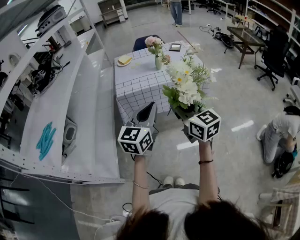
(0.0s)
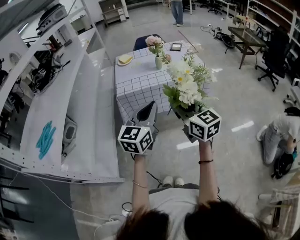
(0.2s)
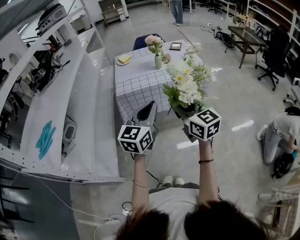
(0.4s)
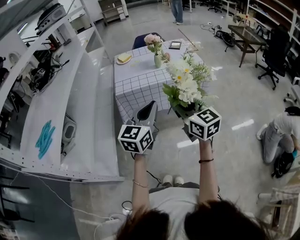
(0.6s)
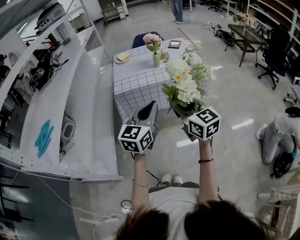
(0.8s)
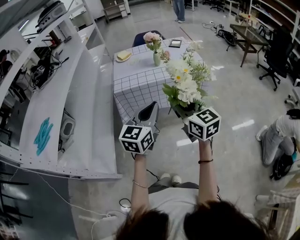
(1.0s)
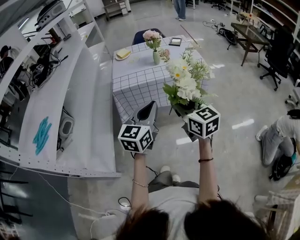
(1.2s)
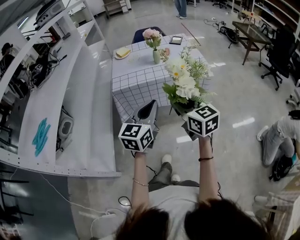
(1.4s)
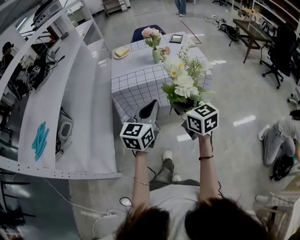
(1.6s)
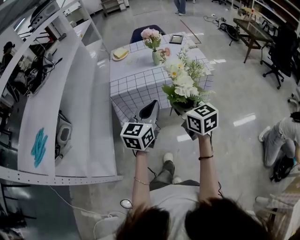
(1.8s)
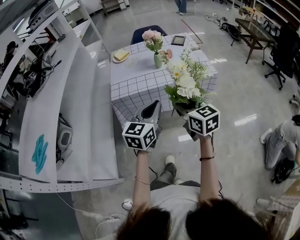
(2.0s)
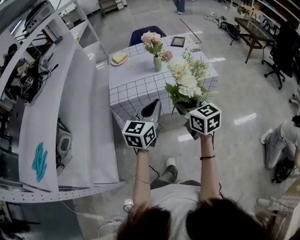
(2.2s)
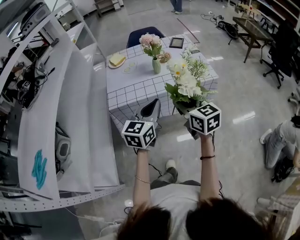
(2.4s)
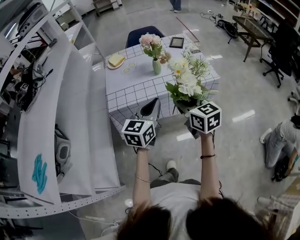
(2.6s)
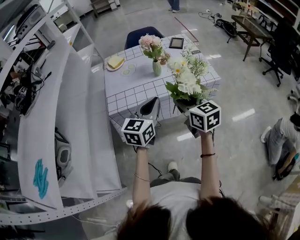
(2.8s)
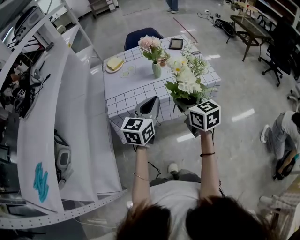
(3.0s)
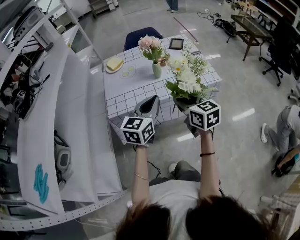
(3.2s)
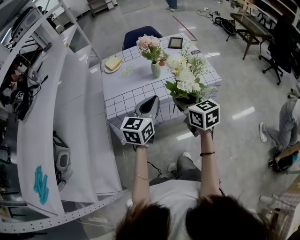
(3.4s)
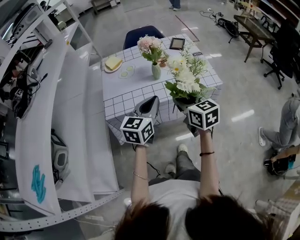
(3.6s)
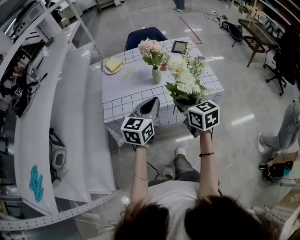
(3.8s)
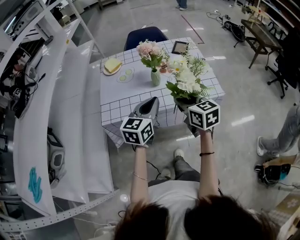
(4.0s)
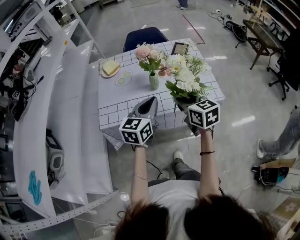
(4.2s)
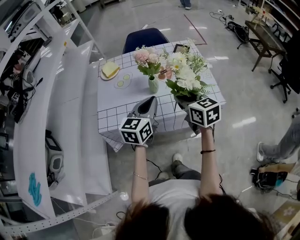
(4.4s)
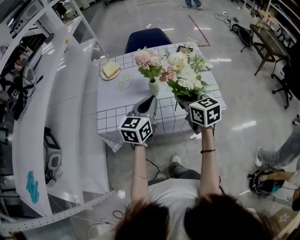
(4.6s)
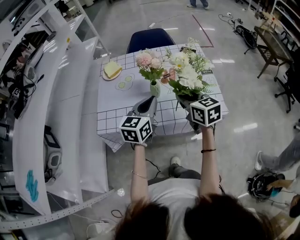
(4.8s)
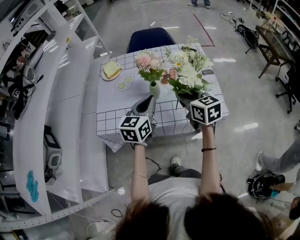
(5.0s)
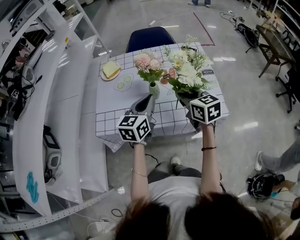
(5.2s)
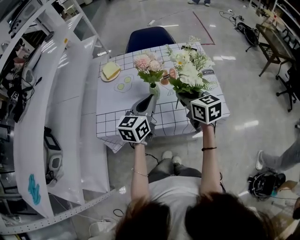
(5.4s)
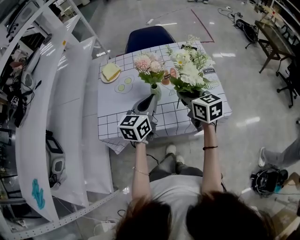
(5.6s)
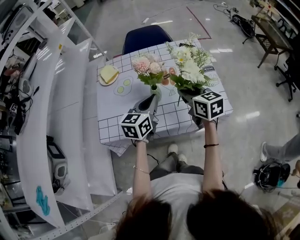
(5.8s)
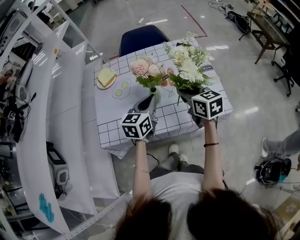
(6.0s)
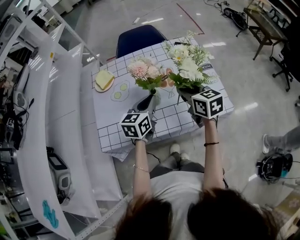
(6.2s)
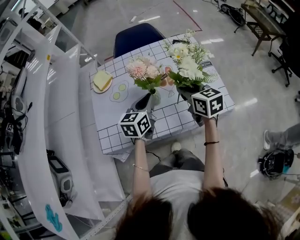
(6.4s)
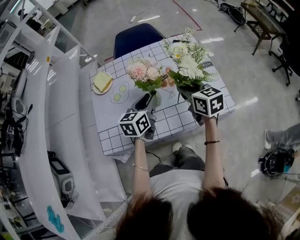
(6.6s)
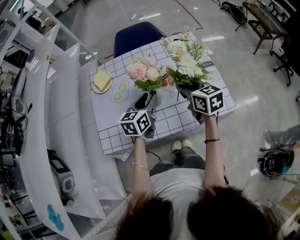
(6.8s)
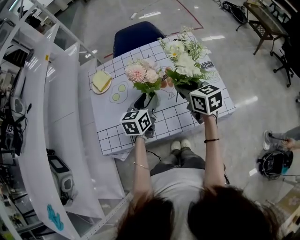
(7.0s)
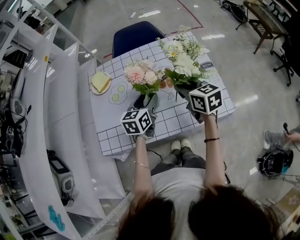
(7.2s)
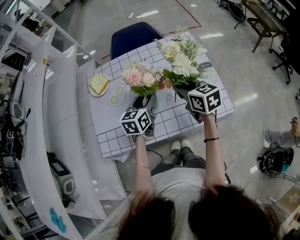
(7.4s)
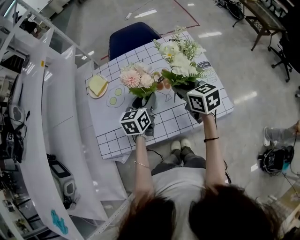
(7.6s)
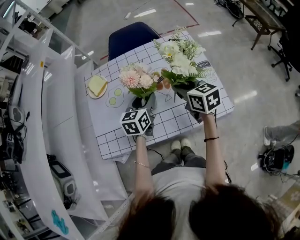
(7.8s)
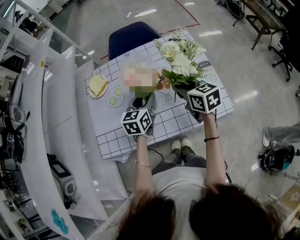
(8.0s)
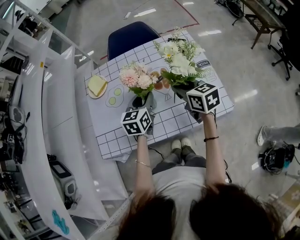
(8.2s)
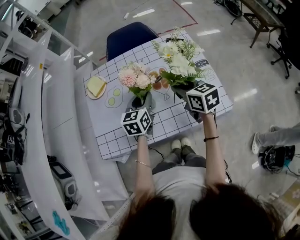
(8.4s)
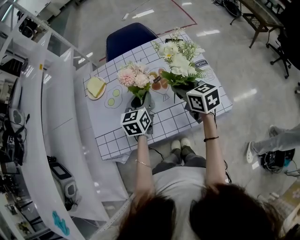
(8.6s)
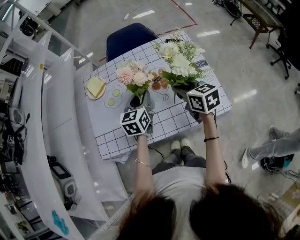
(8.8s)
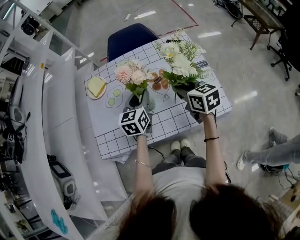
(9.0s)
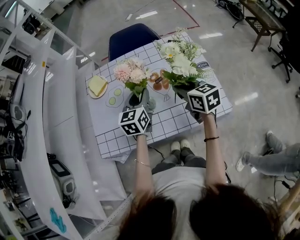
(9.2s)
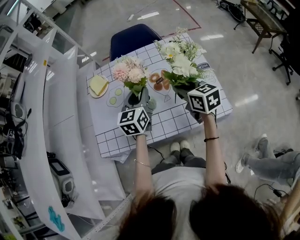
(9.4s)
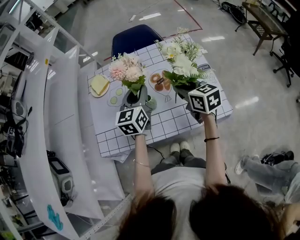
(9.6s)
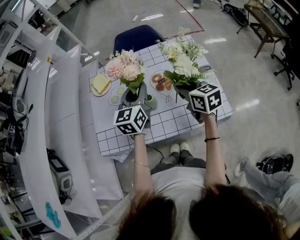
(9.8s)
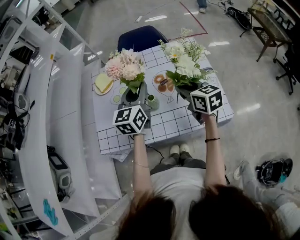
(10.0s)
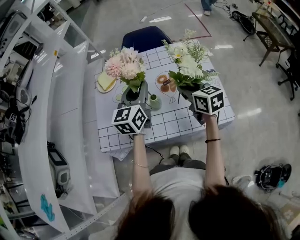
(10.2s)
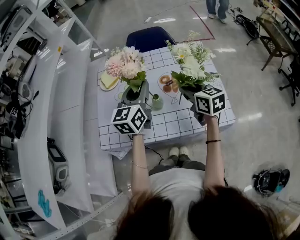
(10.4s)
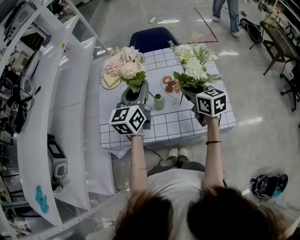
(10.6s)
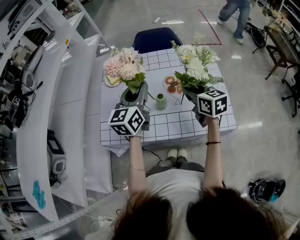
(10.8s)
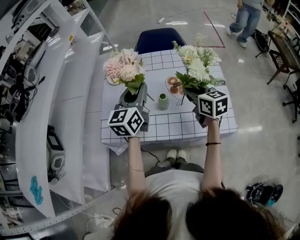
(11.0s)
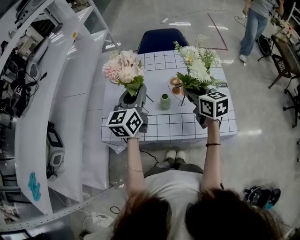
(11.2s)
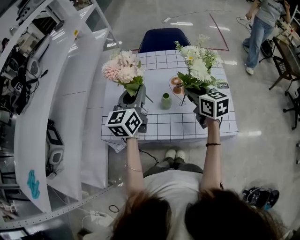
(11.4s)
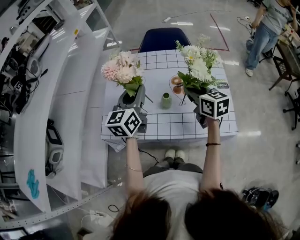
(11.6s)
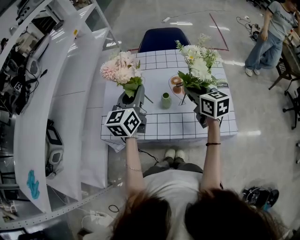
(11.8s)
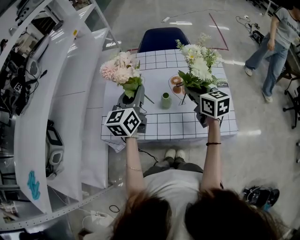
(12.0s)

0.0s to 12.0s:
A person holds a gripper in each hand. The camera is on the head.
0.0s to 1.6s: Both grippers travel together forward, some 5 cm.
1.6s to 3.0s: Both grippers travel together forward, about 20 cm.
3.0s to 4.4s: Both grippers move forward, approximately 15 cm.
4.4s to 6.0s: Both grippers move forward, some 10 cm.
6.0s to 7.6s: Both grippers move forward, some 5 cm. The left gripper opens up.
7.6s to 9.0s: The left gripper closes.
9.0s to 10.4s: The left gripper moves upward, approximately 10 cm.
10.4s to 12.0s: The left gripper travels to the left by about 10 cm.

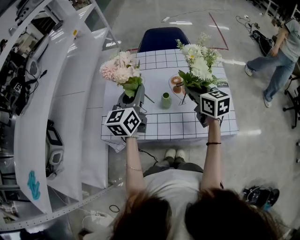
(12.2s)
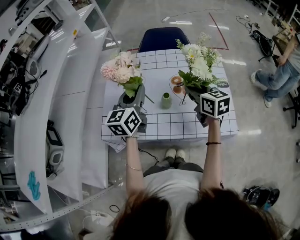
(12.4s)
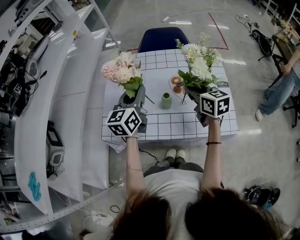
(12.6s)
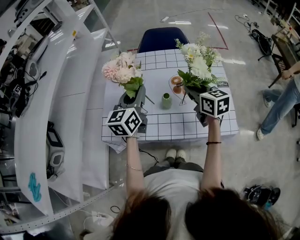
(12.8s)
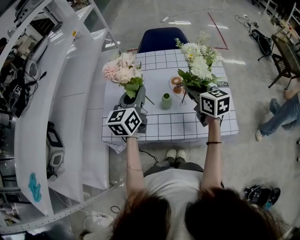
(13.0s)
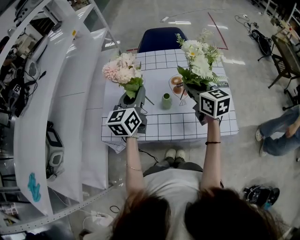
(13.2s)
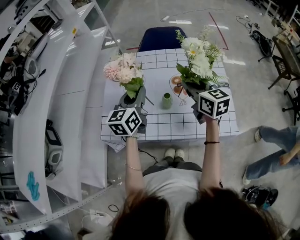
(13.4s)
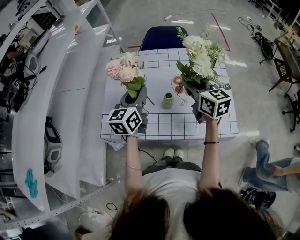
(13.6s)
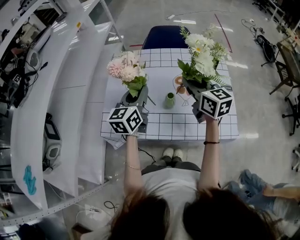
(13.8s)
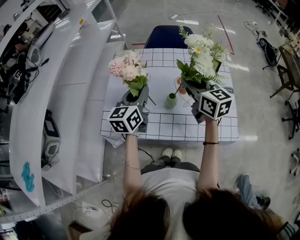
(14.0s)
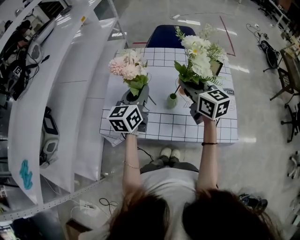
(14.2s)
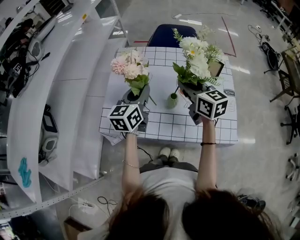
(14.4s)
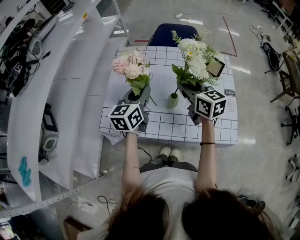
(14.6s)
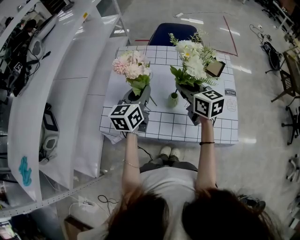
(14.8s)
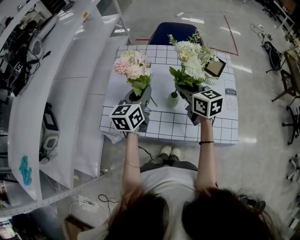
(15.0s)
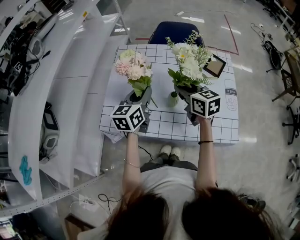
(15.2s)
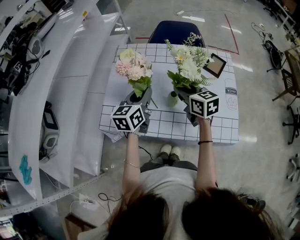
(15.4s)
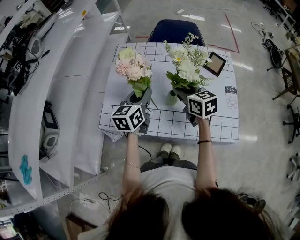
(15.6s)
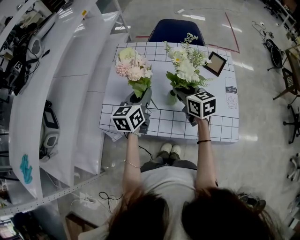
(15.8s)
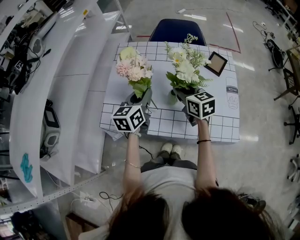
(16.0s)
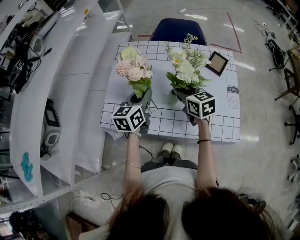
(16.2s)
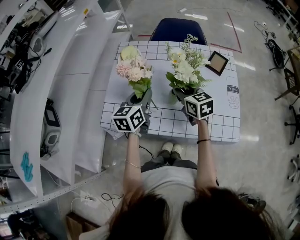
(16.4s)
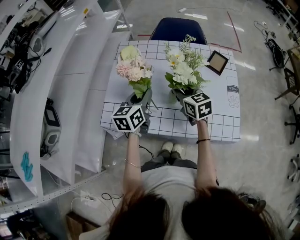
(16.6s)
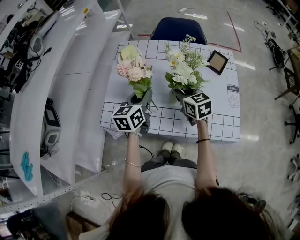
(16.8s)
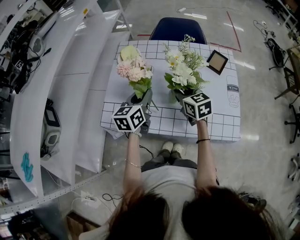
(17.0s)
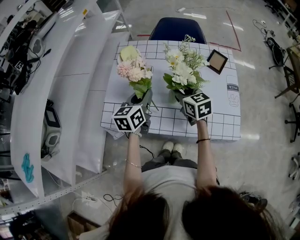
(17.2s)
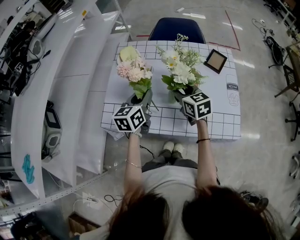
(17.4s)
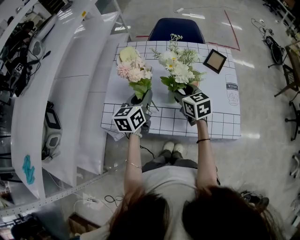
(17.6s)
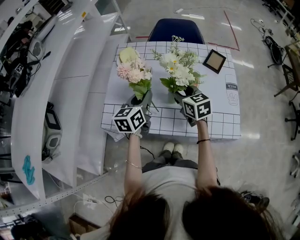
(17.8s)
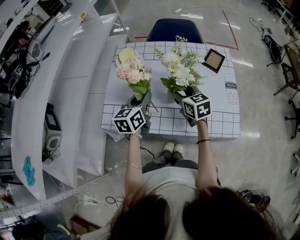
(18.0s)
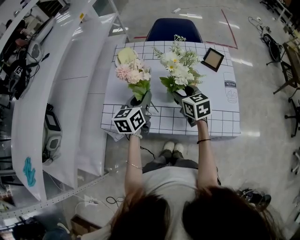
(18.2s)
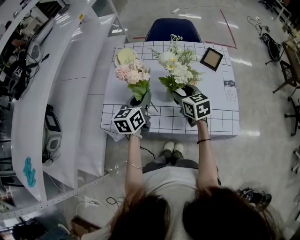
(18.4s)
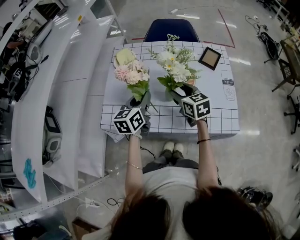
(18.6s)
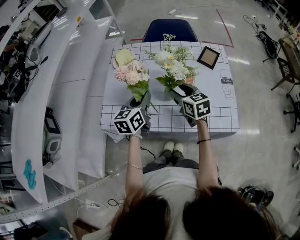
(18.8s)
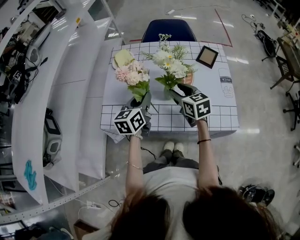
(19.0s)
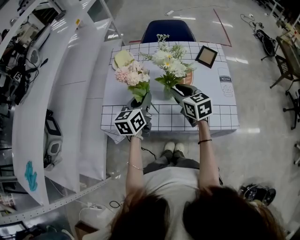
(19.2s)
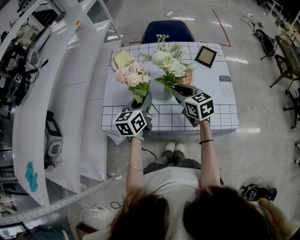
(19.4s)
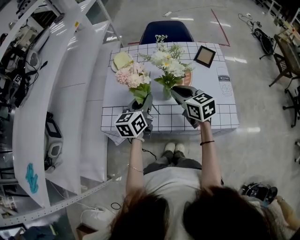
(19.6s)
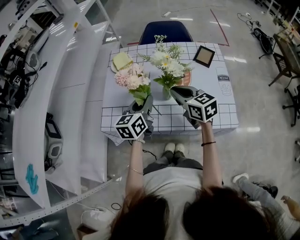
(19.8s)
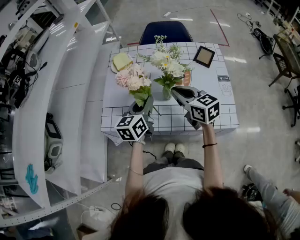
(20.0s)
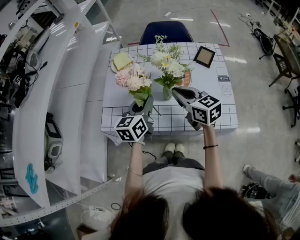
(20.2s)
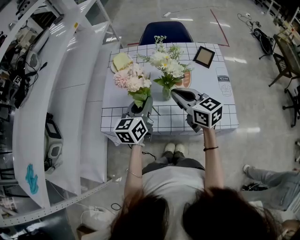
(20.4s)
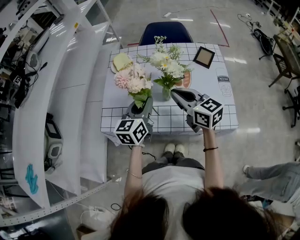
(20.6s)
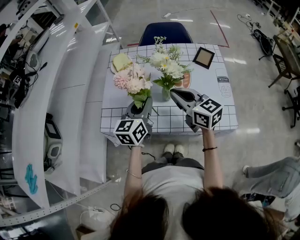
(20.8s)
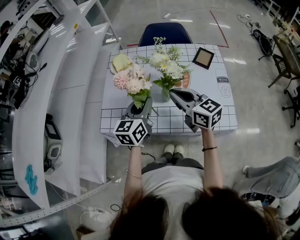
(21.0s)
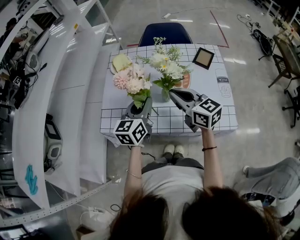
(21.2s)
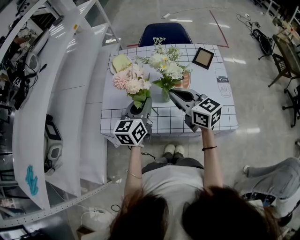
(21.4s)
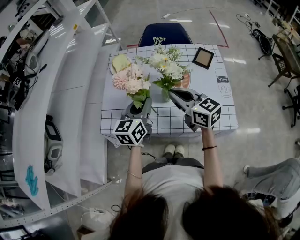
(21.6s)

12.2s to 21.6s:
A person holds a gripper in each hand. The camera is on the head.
12.2s to 13.8s: The right gripper shifts by about 5 cm.
13.8s to 15.4s: The right gripper shifts about 10 cm downward.
15.4s to 17.0s: The grippers move only a little.
17.0s to 18.4s: The right gripper opens up.
18.4s to 20.0s: The right gripper moves upward and backward, roughly 10 cm, and closes its fingers.
20.0s to 21.6s: The grippers stay close to where they were, moving slightly.

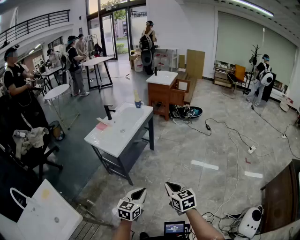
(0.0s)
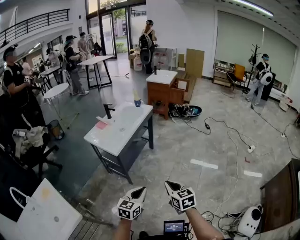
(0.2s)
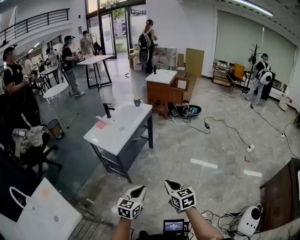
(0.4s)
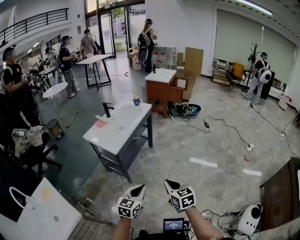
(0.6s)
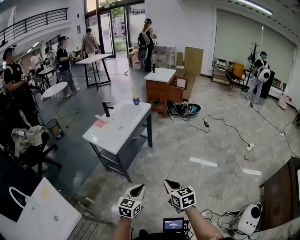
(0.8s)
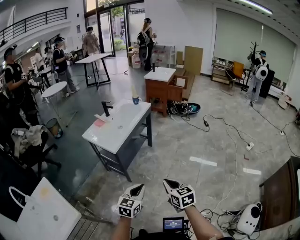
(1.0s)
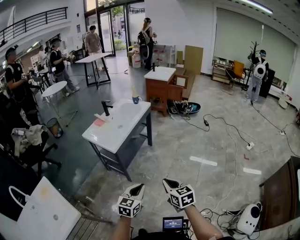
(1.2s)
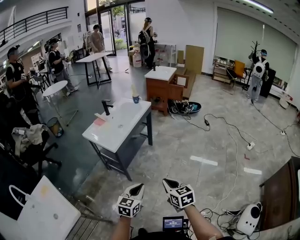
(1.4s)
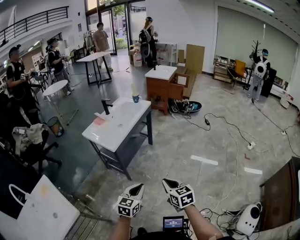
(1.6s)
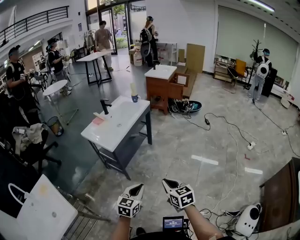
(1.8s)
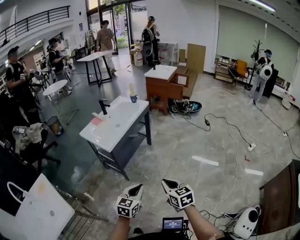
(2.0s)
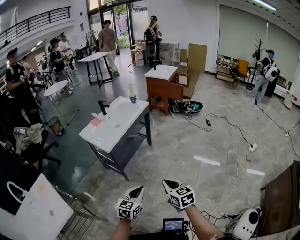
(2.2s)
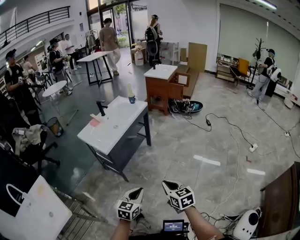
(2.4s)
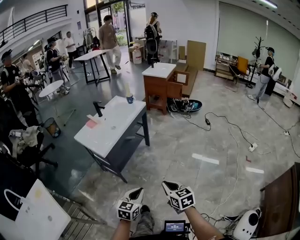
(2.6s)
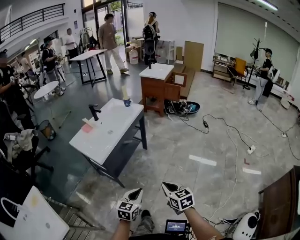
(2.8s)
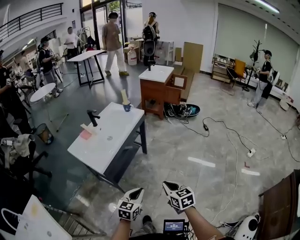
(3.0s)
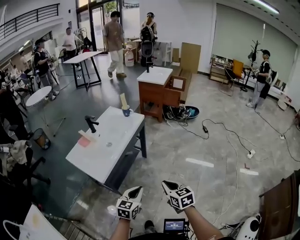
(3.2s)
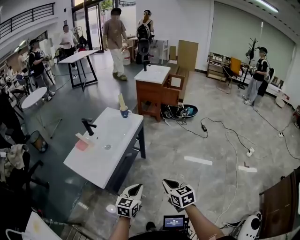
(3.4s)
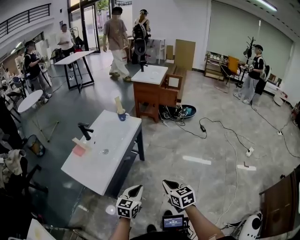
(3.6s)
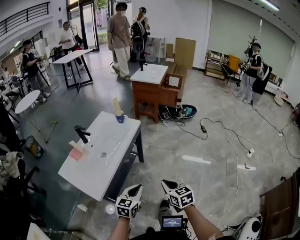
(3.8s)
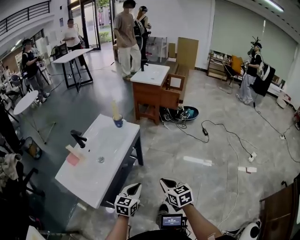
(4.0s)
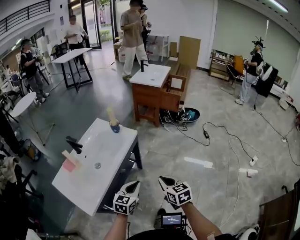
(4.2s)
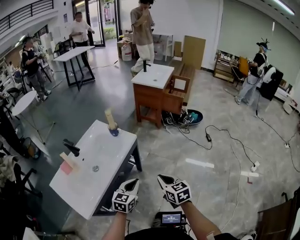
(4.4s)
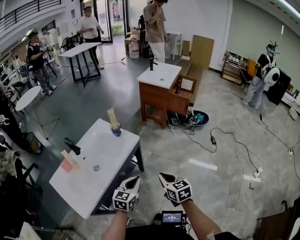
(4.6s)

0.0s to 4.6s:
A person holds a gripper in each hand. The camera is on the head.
0.0s to 1.6s: The grippers stay close to where they were, moving slightly.
1.6s to 3.0s: The two grippers go about 20 cm forward.
3.0s to 4.6s: Both grippers are carried forward, roughly 40 cm.
